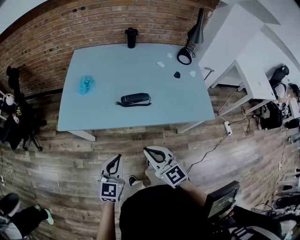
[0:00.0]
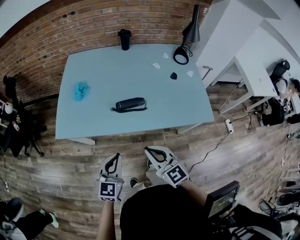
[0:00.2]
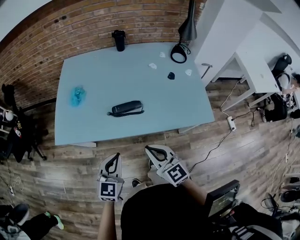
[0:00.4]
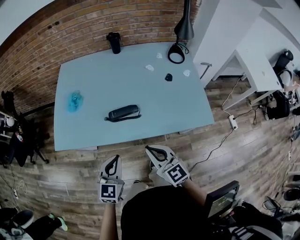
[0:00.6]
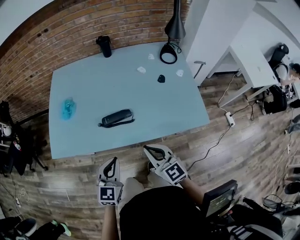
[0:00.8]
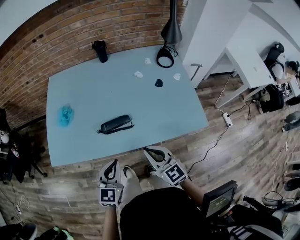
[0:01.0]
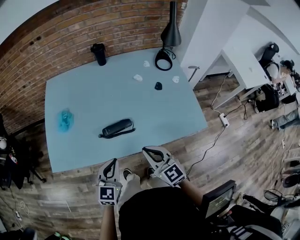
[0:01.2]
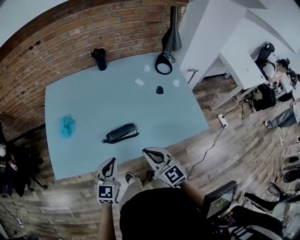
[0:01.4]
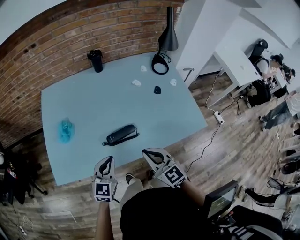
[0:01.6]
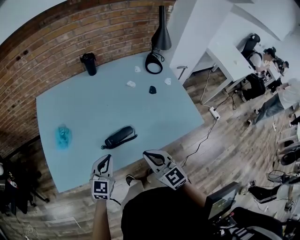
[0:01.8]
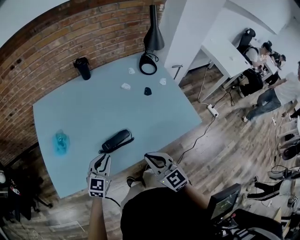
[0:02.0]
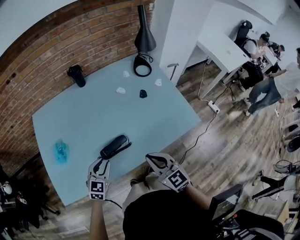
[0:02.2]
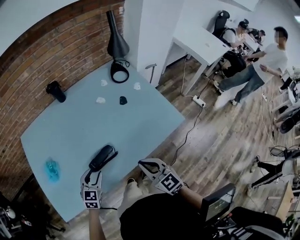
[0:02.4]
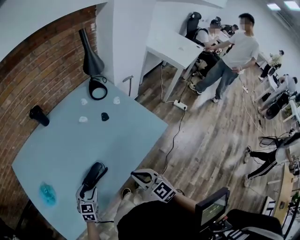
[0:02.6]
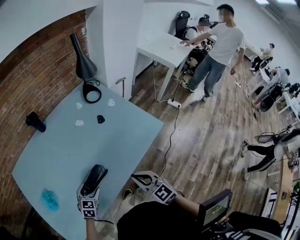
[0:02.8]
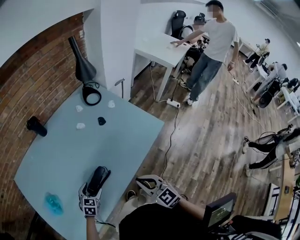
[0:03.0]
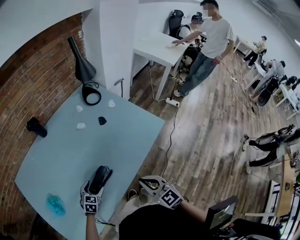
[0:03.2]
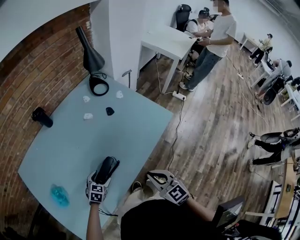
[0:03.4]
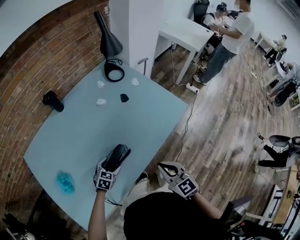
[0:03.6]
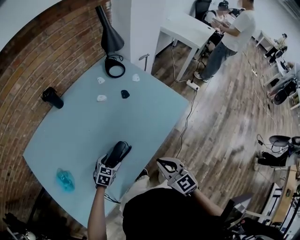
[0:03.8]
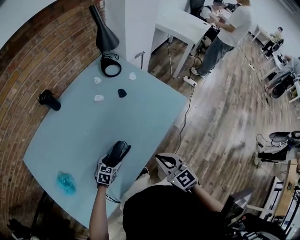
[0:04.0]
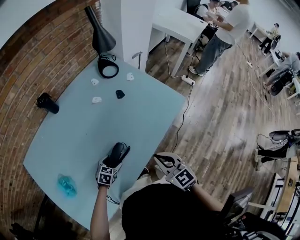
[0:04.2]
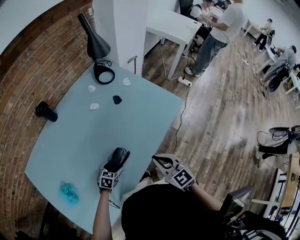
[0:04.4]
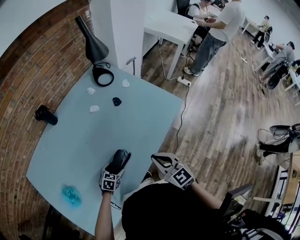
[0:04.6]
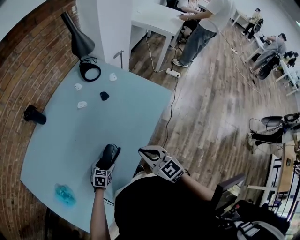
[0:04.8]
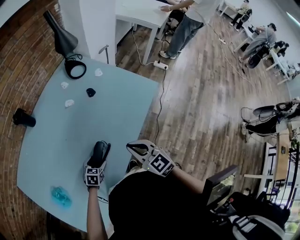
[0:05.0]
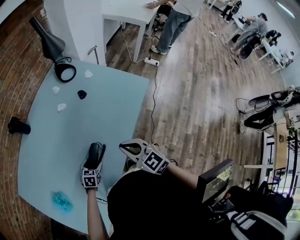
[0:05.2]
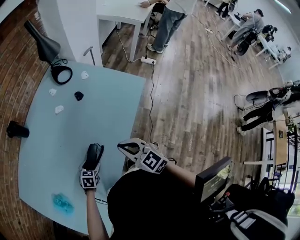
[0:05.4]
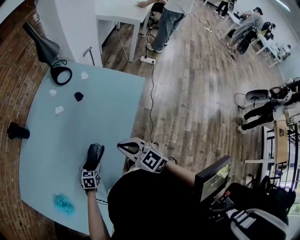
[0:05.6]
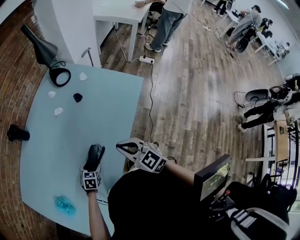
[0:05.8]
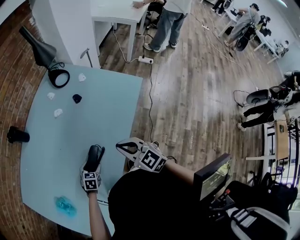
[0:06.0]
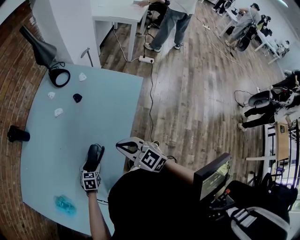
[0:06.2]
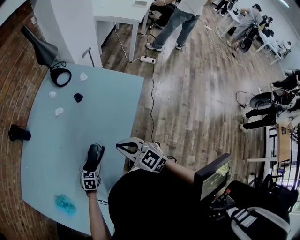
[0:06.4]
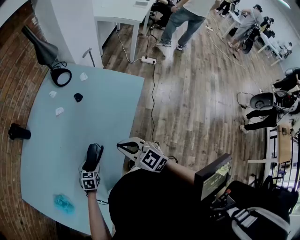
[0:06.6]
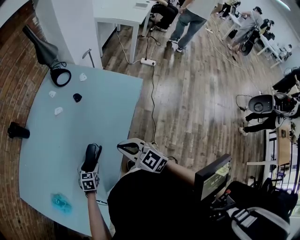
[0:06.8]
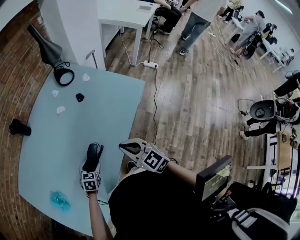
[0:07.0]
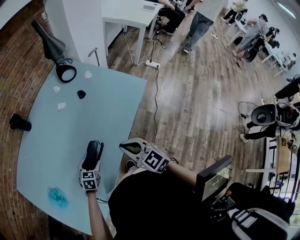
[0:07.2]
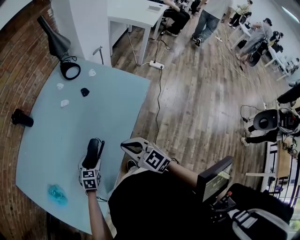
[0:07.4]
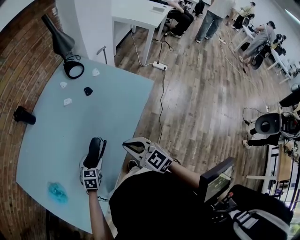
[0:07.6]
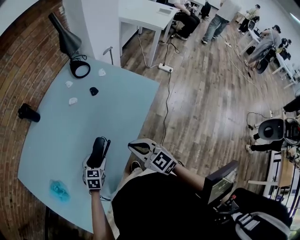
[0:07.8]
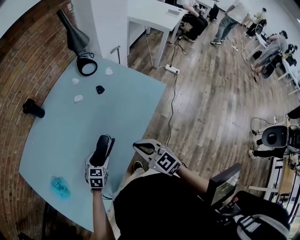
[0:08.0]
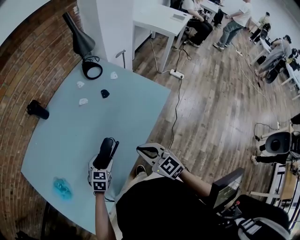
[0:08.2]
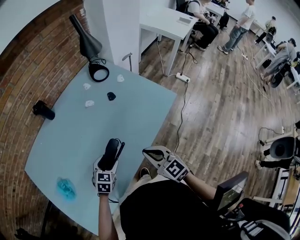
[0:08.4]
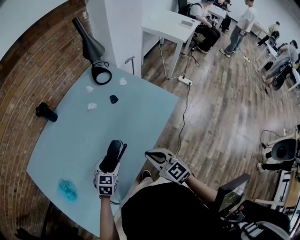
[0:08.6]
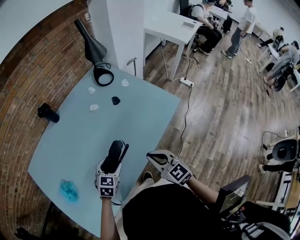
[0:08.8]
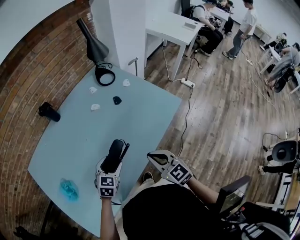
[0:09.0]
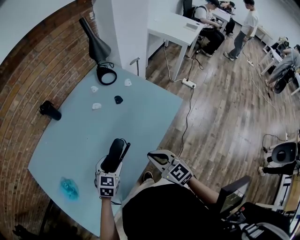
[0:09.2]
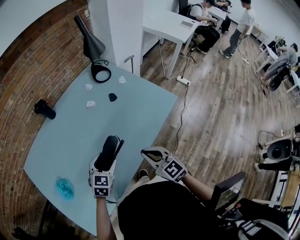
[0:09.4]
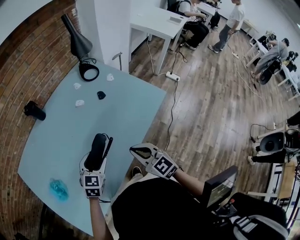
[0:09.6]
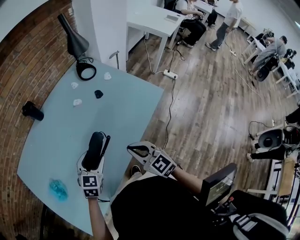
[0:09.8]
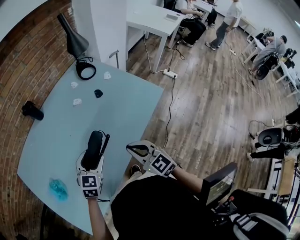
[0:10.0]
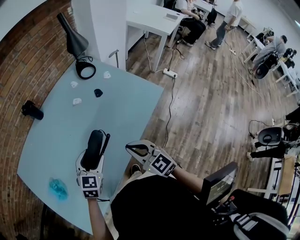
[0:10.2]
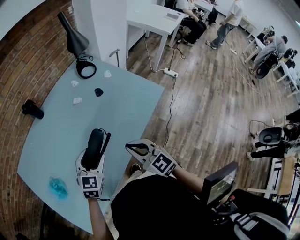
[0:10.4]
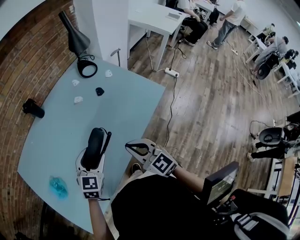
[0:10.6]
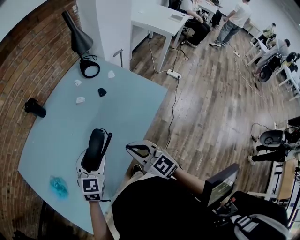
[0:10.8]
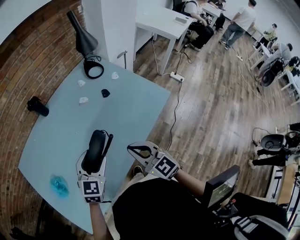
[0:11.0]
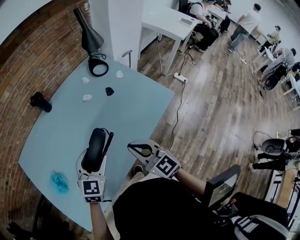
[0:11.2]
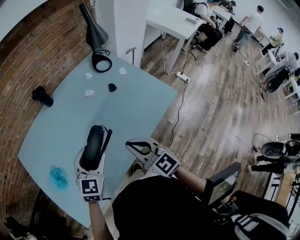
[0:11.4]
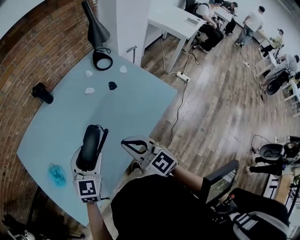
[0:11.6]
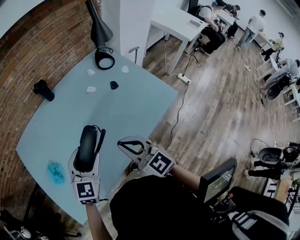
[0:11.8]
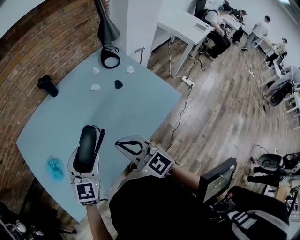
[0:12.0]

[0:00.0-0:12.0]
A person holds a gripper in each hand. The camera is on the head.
0:00.0 to 0:01.6: Both grippers travel together forward, some 20 cm.
0:01.6 to 0:03.0: The left gripper moves downward, some 15 cm, turns by approximately 40 degrees, and opens up. Meanwhile the right gripper changes place by some 10 cm, and changes its angle by some 30 degrees.
0:03.0 to 0:04.4: The left gripper goes roughly 10 cm downward.
0:04.4 to 0:06.0: There are only small adjustments of the grippers.
0:06.0 to 0:07.6: The left gripper heads upward, covering approximately 5 cm.
0:07.6 to 0:09.0: The left gripper shifts roughly 10 cm upward.
0:09.0 to 0:10.4: The left gripper is displaced upward by about 5 cm.
0:10.4 to 0:12.0: The right gripper travels to the left and upward by some 10 cm. The left gripper travels upward and to the left by some 10 cm.

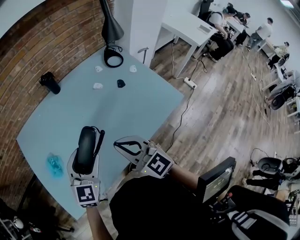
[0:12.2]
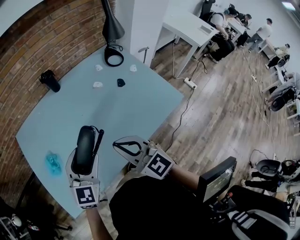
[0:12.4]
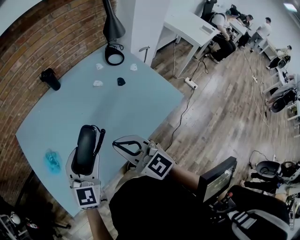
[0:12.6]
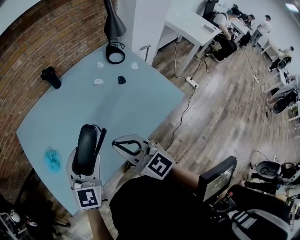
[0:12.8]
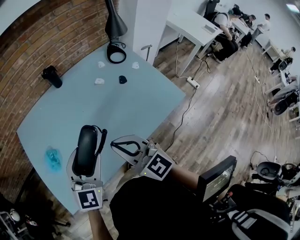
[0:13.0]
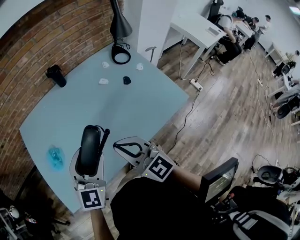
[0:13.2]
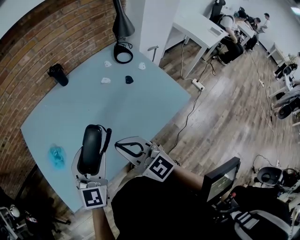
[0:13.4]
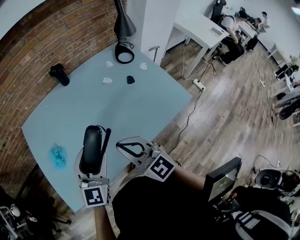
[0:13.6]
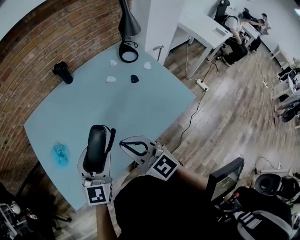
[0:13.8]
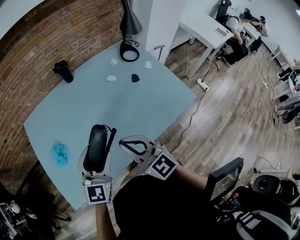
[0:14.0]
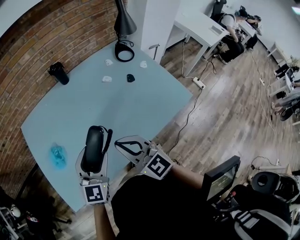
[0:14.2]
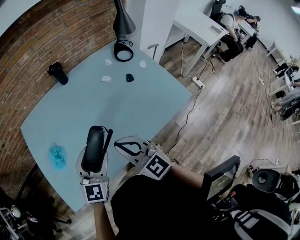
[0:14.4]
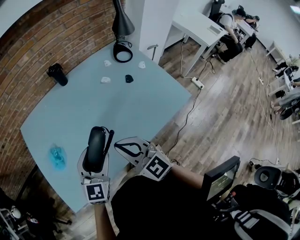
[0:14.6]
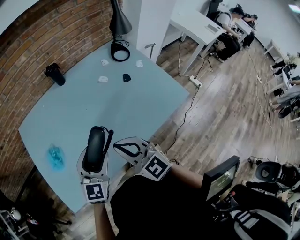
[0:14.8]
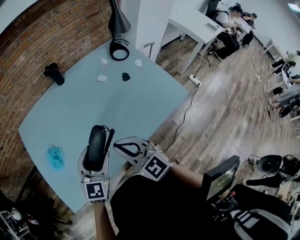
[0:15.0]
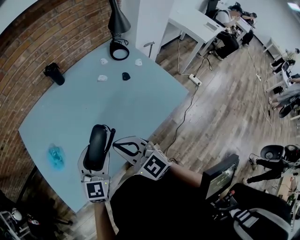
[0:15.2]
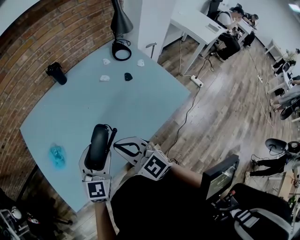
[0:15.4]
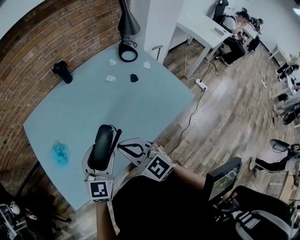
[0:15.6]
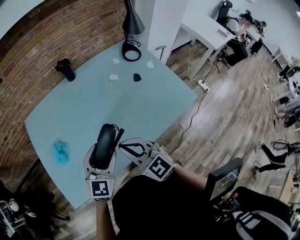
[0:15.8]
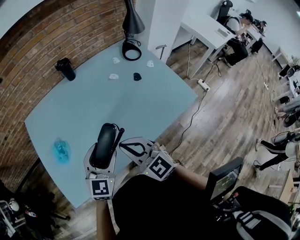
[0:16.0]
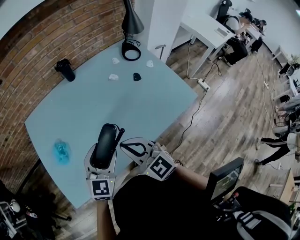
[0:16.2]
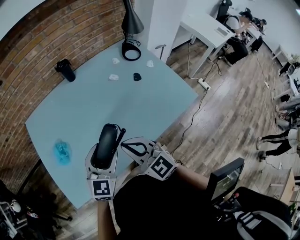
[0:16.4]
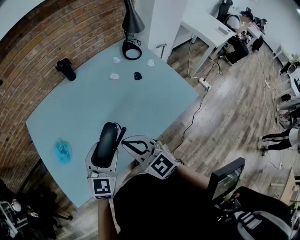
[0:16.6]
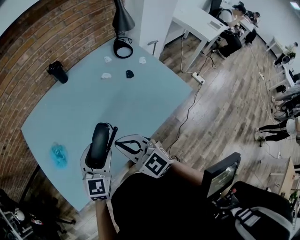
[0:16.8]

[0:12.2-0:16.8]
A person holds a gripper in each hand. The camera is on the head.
0:12.2 to 0:16.8: The grippers move only a little.

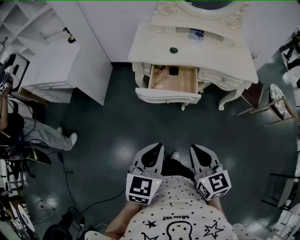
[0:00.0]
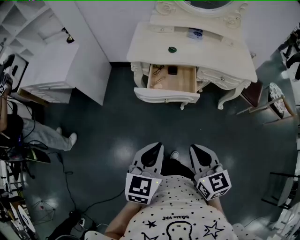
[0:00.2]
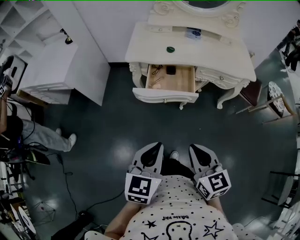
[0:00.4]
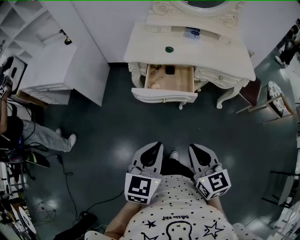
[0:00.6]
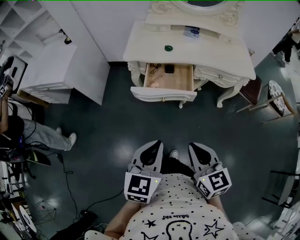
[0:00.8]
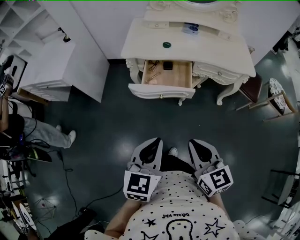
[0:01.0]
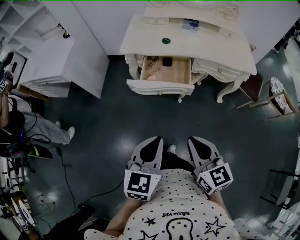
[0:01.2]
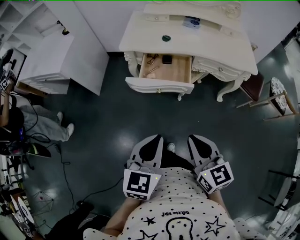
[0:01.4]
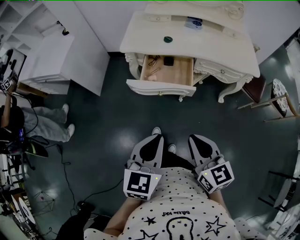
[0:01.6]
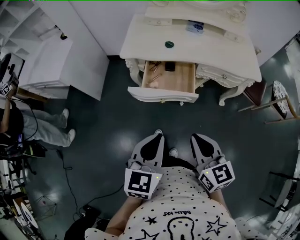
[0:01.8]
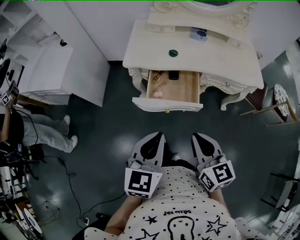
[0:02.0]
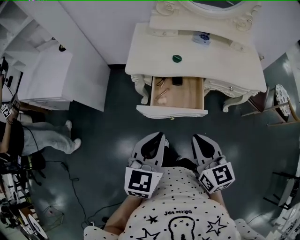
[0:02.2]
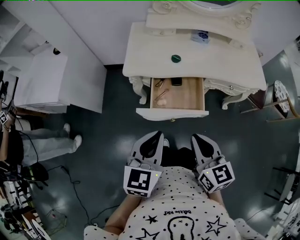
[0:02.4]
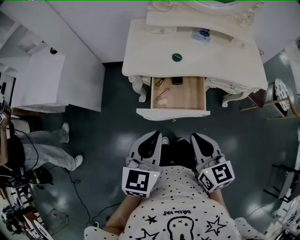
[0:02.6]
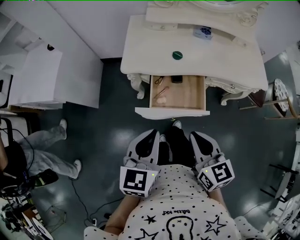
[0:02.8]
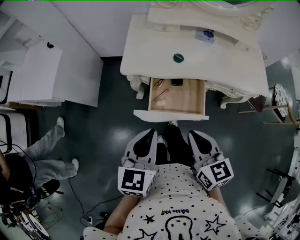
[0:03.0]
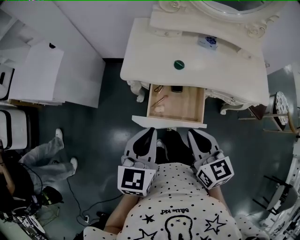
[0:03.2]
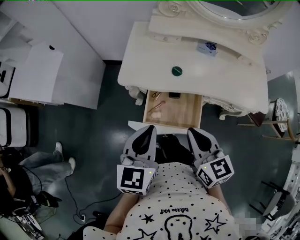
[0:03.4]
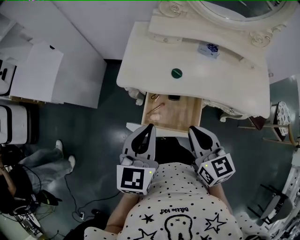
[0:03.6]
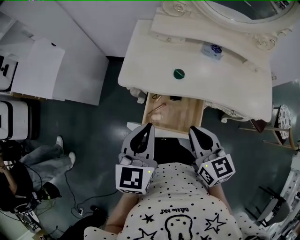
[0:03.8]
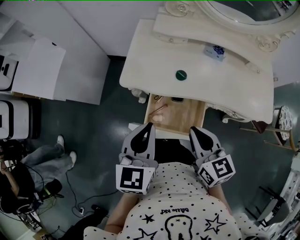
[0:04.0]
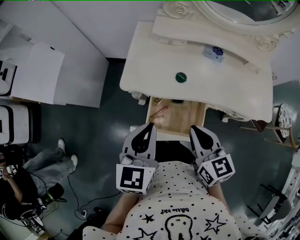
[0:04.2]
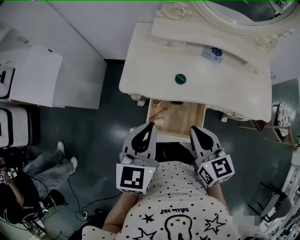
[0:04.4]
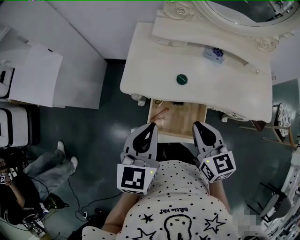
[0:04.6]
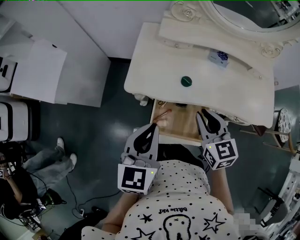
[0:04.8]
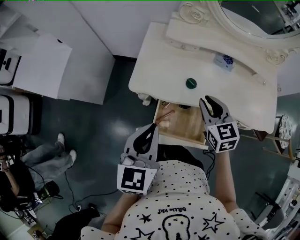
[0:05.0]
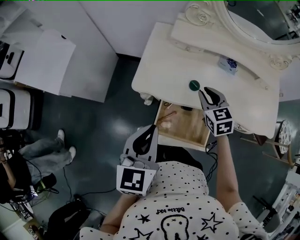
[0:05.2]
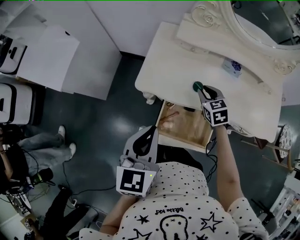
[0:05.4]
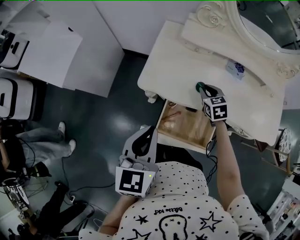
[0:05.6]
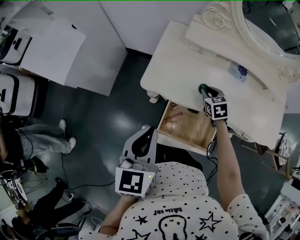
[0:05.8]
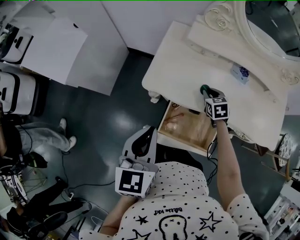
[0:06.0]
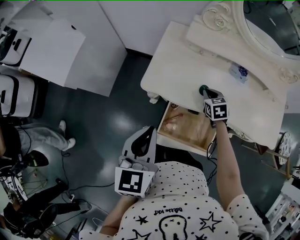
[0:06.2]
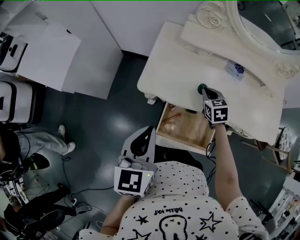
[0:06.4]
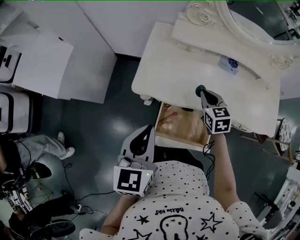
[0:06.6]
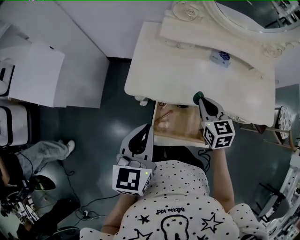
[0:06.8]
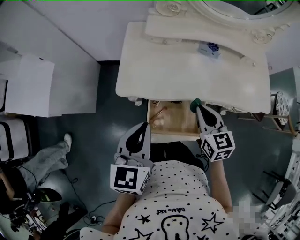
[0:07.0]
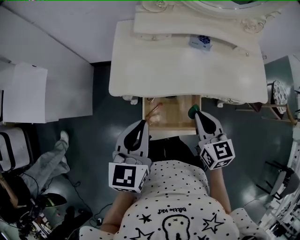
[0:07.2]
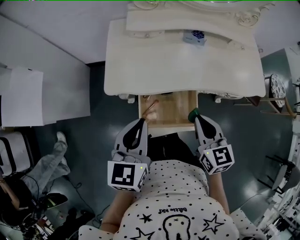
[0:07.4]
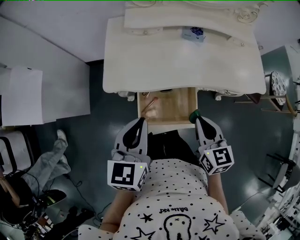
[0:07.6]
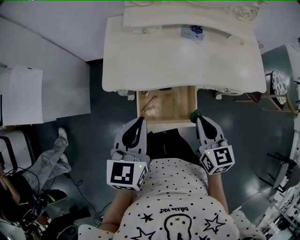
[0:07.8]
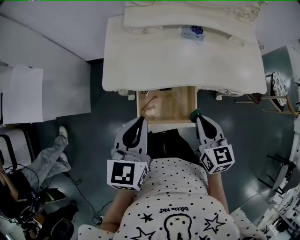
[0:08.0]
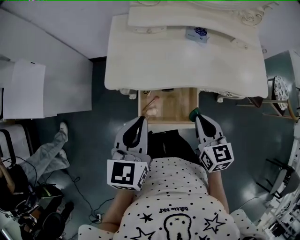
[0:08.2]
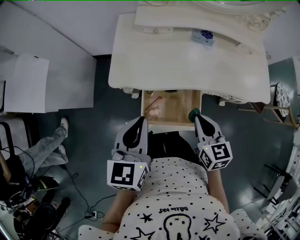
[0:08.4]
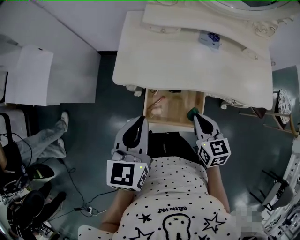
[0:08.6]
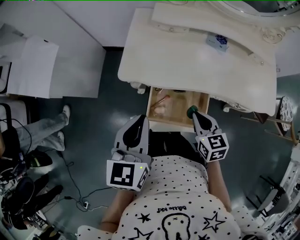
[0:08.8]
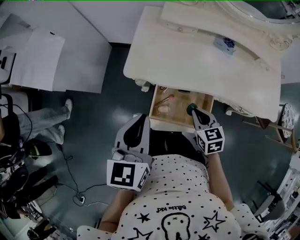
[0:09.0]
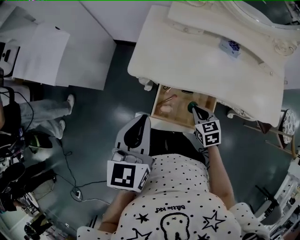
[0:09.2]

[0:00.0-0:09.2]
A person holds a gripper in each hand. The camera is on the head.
0:00.0 to 0:01.6: The right gripper ends up some 5 cm from where it was, while the left gripper goes some 5 cm to the right.
0:01.6 to 0:03.0: The left gripper heads forward and to the left, covering approximately 25 cm. Meanwhile the right gripper shifts approximately 20 cm forward.
0:03.0 to 0:04.6: The two grippers go about 15 cm forward.
0:04.6 to 0:06.2: The right gripper heads forward and downward, covering some 30 cm, and turns by approximately 30 degrees, while the left gripper moves to the left, some 5 cm.
0:06.2 to 0:07.6: The left gripper is displaced to the right by about 5 cm. The right gripper travels backward and upward by approximately 30 cm, and turns by about 30 degrees.
0:07.6 to 0:09.2: The right gripper is displaced downward by approximately 15 cm, and rotates some 30 degrees; the left gripper moves some 5 cm.
